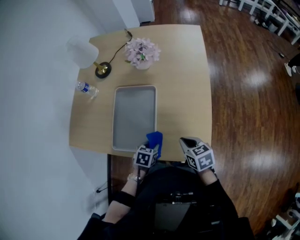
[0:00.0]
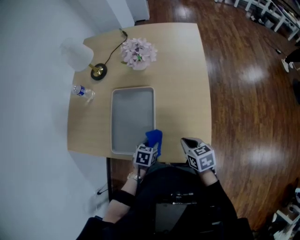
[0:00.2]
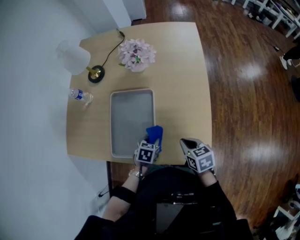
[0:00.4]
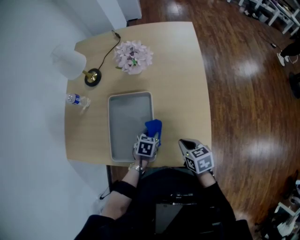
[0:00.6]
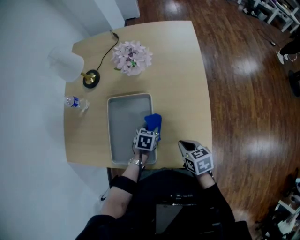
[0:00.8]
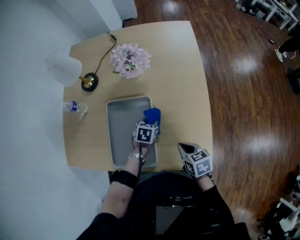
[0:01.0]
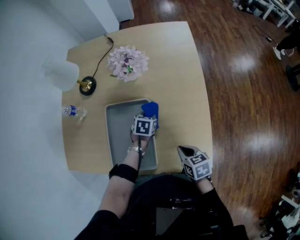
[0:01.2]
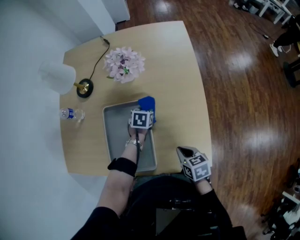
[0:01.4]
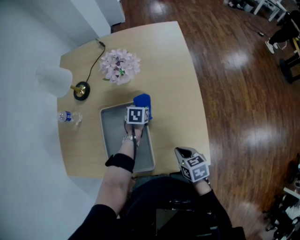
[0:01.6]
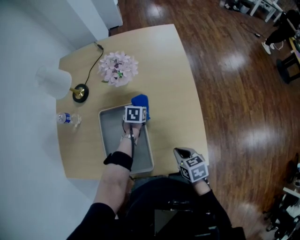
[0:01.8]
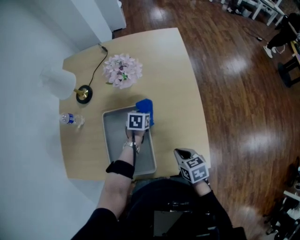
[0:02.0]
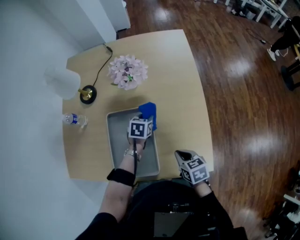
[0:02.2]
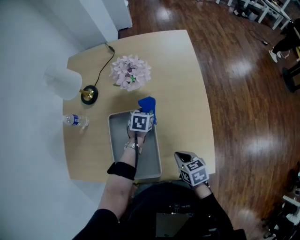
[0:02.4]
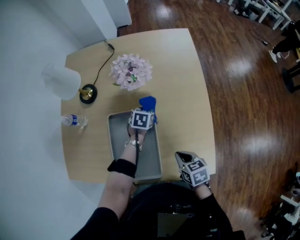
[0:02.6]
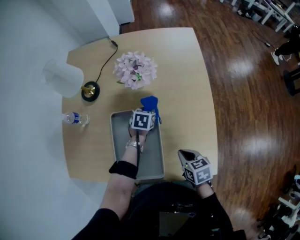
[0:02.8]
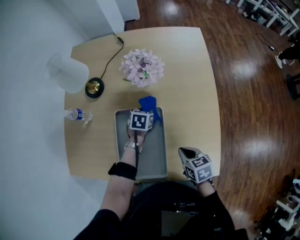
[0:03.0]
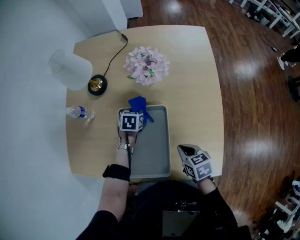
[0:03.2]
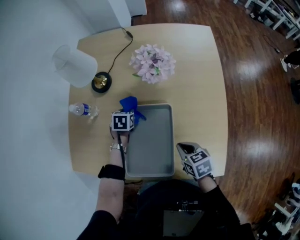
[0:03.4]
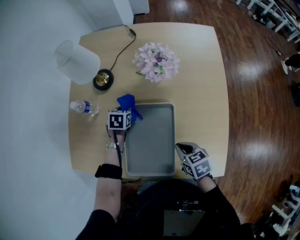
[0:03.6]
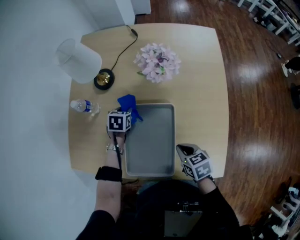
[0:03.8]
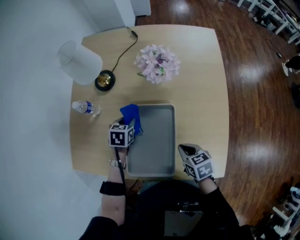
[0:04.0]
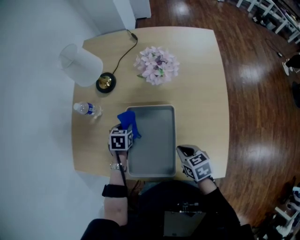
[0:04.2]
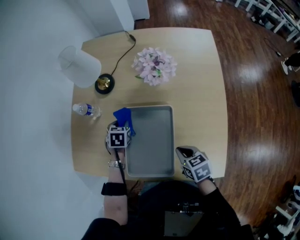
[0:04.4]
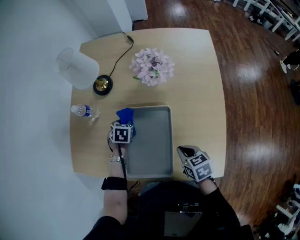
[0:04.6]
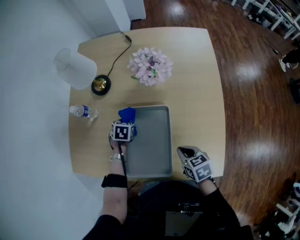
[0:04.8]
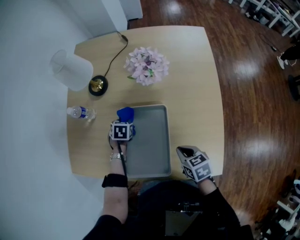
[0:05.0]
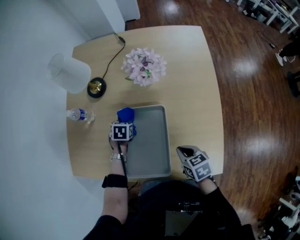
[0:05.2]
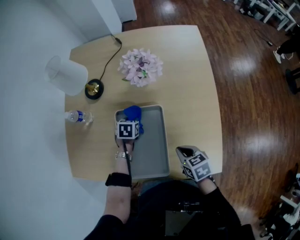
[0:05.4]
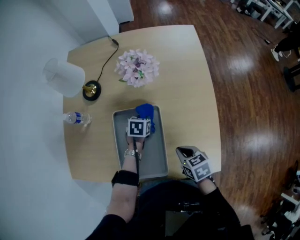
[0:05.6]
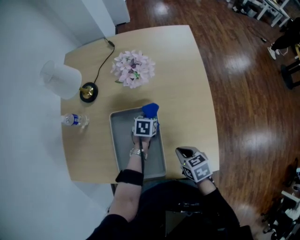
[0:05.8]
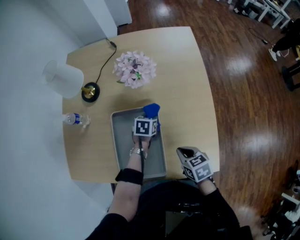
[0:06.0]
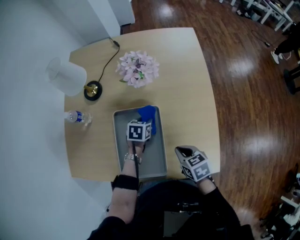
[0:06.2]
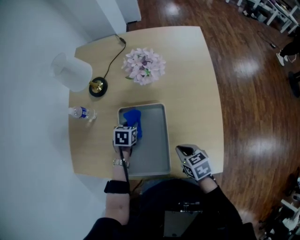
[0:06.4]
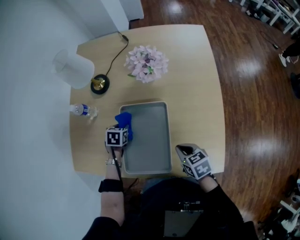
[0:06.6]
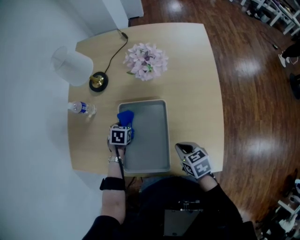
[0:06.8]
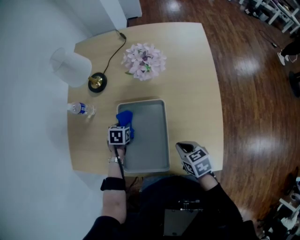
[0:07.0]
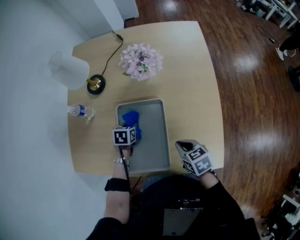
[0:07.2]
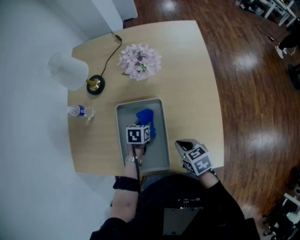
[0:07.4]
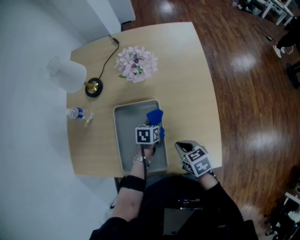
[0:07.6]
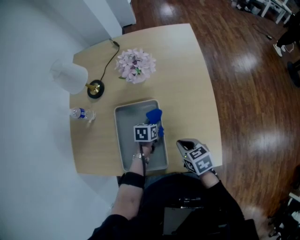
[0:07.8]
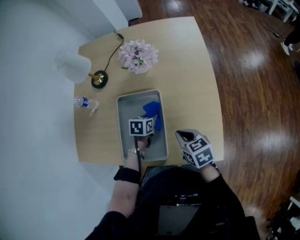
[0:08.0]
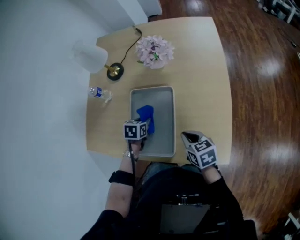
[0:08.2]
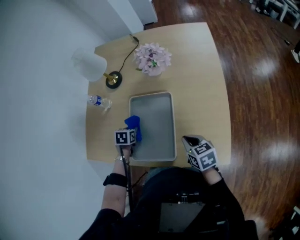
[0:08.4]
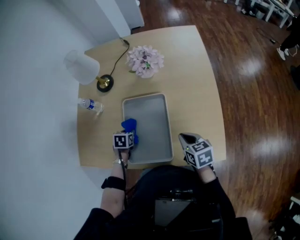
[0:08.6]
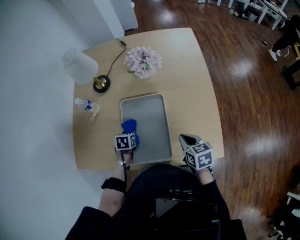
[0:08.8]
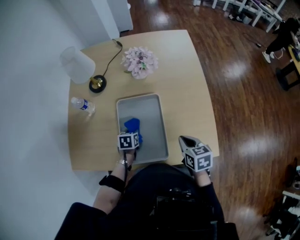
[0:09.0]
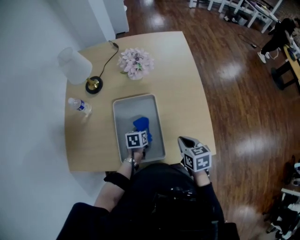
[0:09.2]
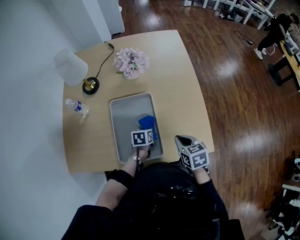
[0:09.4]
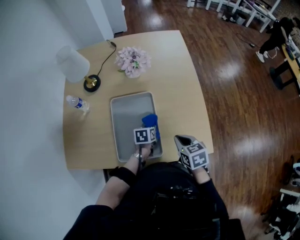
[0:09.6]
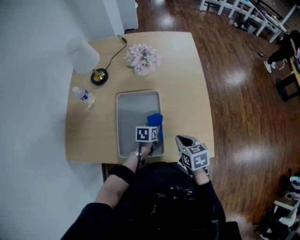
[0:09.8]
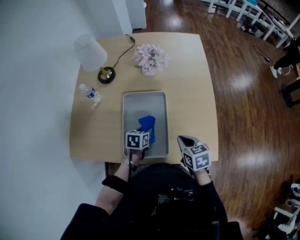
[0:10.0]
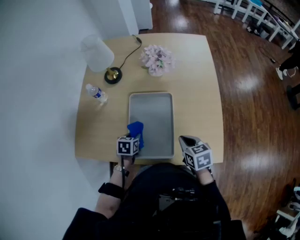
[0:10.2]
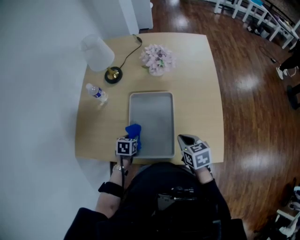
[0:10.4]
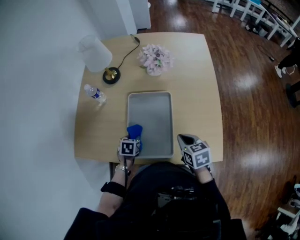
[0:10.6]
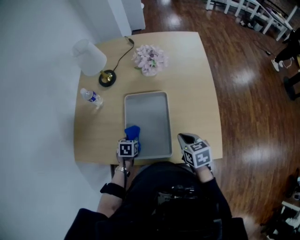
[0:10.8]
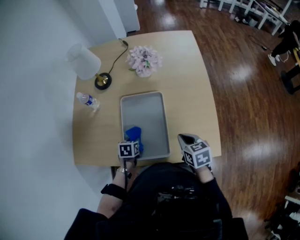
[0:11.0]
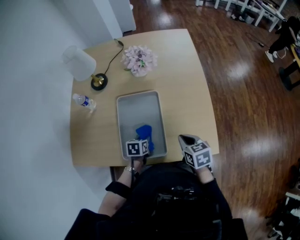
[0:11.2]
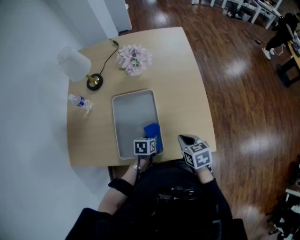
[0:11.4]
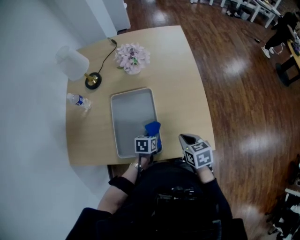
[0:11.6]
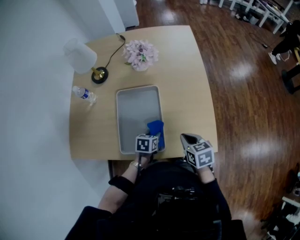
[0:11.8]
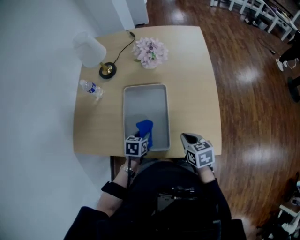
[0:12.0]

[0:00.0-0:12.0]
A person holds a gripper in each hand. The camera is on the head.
0:00.0 to 0:01.6: The left gripper travels forward by roughly 30 cm.
0:01.6 to 0:03.0: The right gripper is displaced forward and to the left by approximately 10 cm; the left gripper heads to the left, covering approximately 5 cm.
0:03.0 to 0:04.4: The right gripper goes roughly 5 cm to the left. Meanwhile the left gripper goes roughly 20 cm to the left.
0:04.4 to 0:06.0: The right gripper ends up some 5 cm from where it was; the left gripper moves approximately 25 cm, and turns by about 20 degrees.
0:06.0 to 0:07.6: The left gripper travels backward by about 5 cm, and reaches approximately 20 cm to the left, then returns.
0:07.6 to 0:09.0: The right gripper moves roughly 5 cm. The left gripper moves to the left, about 15 cm.
0:09.0 to 0:10.4: The left gripper goes approximately 5 cm backward, and moves roughly 15 cm to the right and comes back.
0:10.4 to 0:12.0: The left gripper travels to the right by roughly 10 cm.

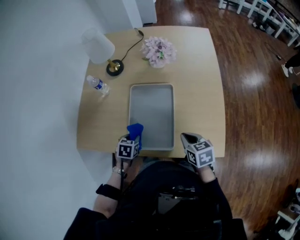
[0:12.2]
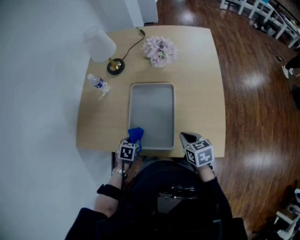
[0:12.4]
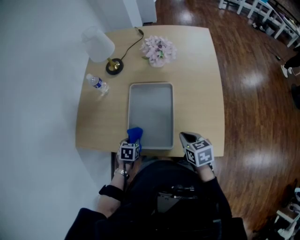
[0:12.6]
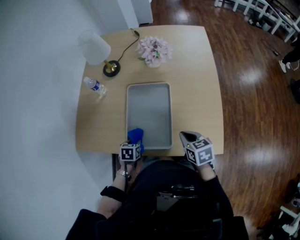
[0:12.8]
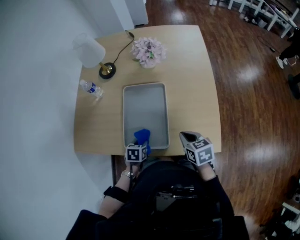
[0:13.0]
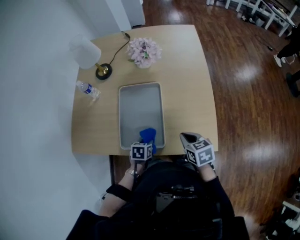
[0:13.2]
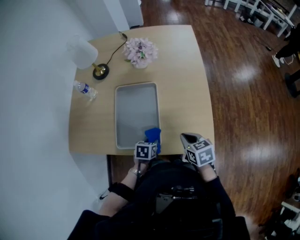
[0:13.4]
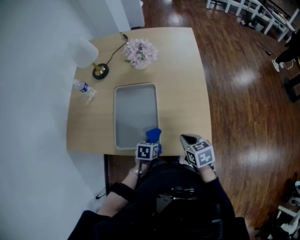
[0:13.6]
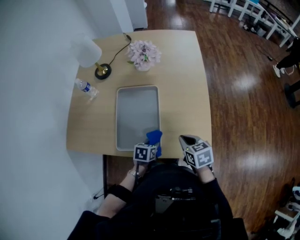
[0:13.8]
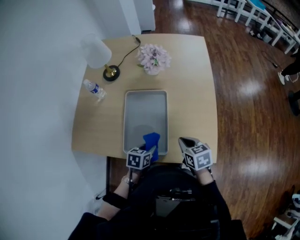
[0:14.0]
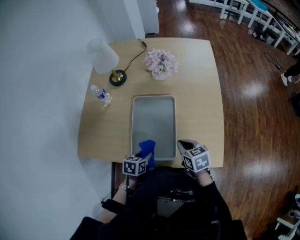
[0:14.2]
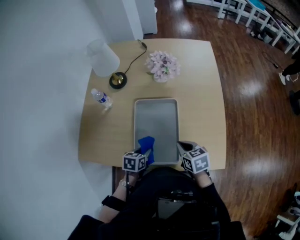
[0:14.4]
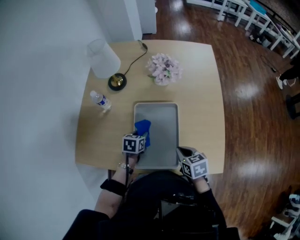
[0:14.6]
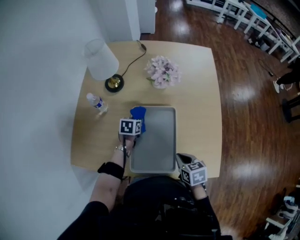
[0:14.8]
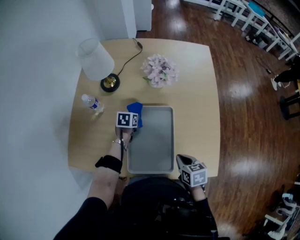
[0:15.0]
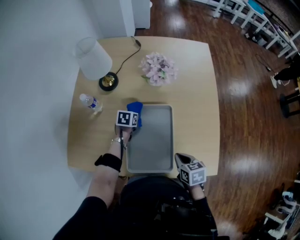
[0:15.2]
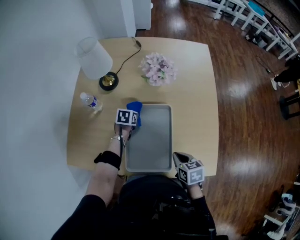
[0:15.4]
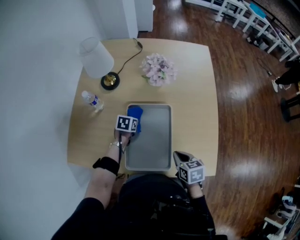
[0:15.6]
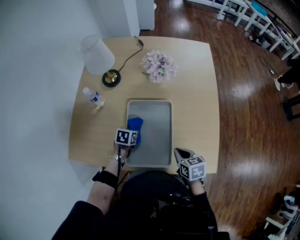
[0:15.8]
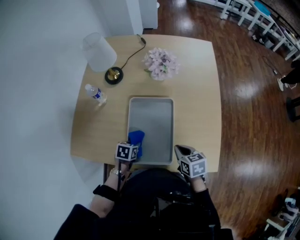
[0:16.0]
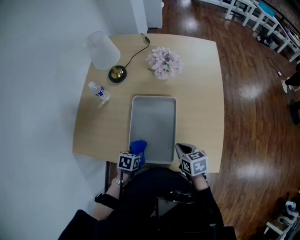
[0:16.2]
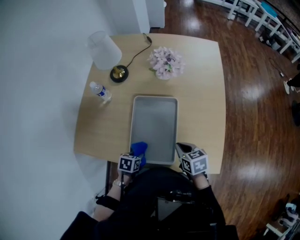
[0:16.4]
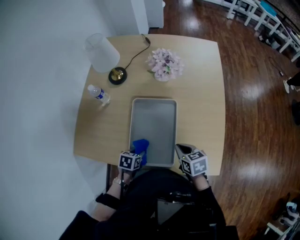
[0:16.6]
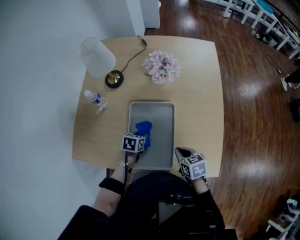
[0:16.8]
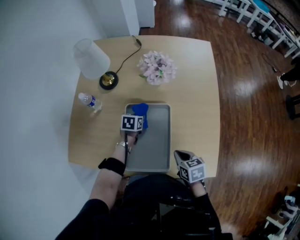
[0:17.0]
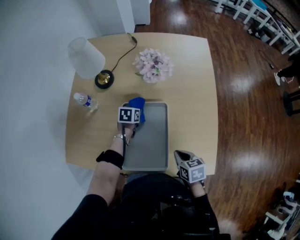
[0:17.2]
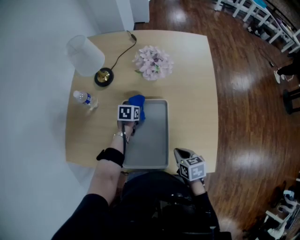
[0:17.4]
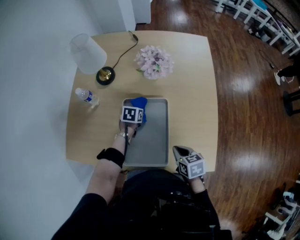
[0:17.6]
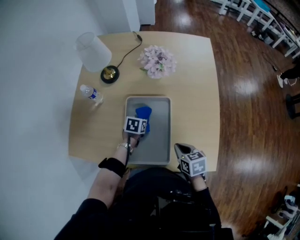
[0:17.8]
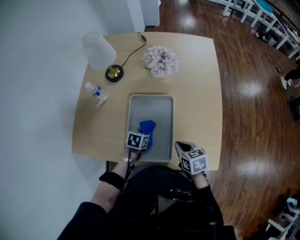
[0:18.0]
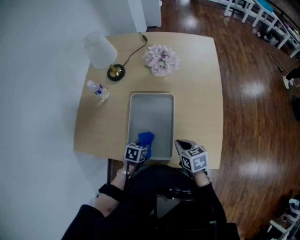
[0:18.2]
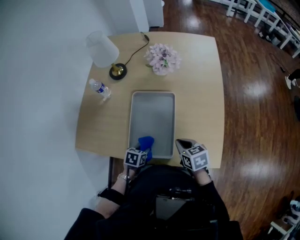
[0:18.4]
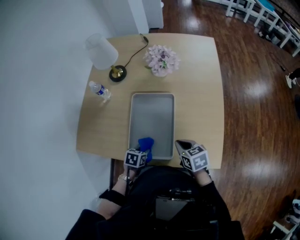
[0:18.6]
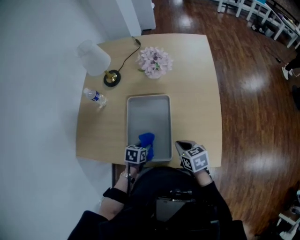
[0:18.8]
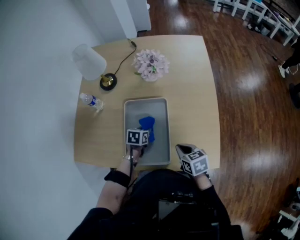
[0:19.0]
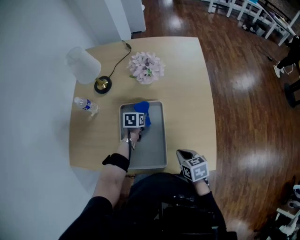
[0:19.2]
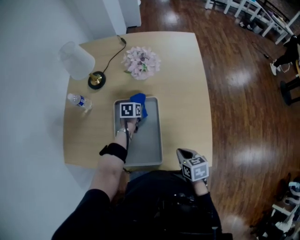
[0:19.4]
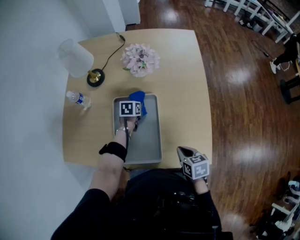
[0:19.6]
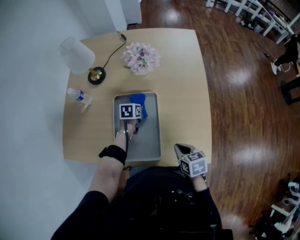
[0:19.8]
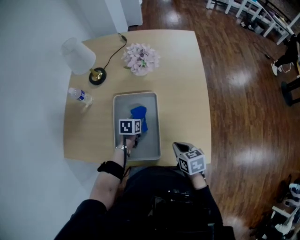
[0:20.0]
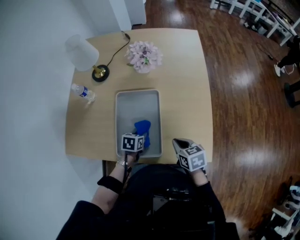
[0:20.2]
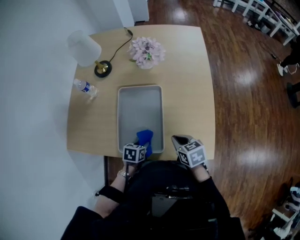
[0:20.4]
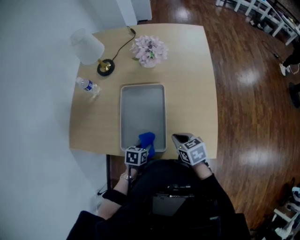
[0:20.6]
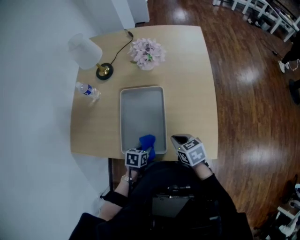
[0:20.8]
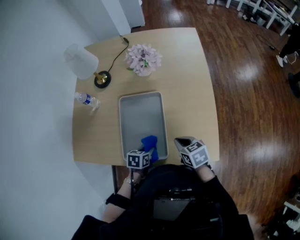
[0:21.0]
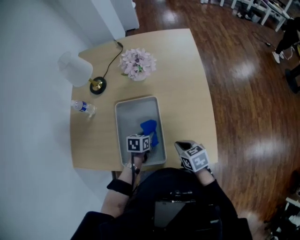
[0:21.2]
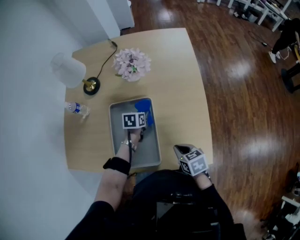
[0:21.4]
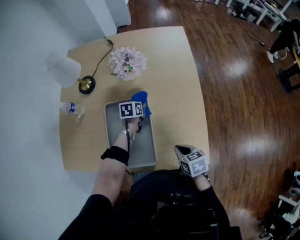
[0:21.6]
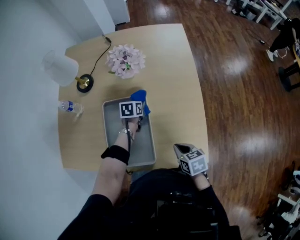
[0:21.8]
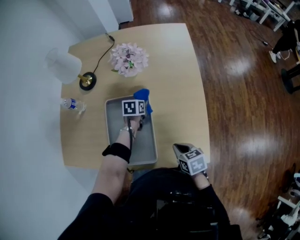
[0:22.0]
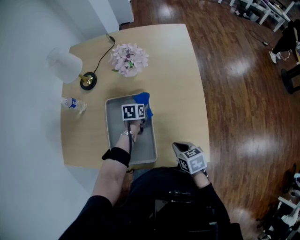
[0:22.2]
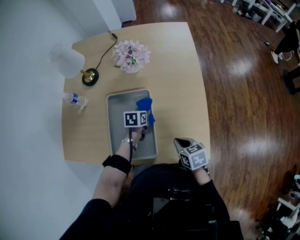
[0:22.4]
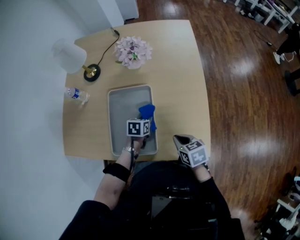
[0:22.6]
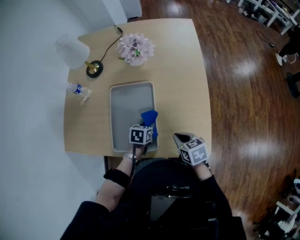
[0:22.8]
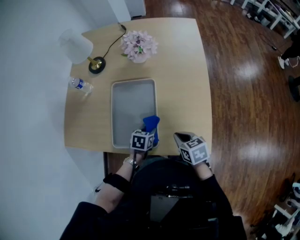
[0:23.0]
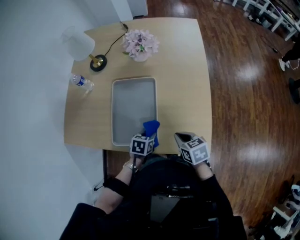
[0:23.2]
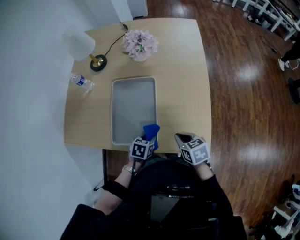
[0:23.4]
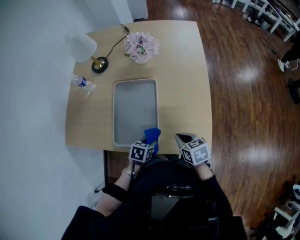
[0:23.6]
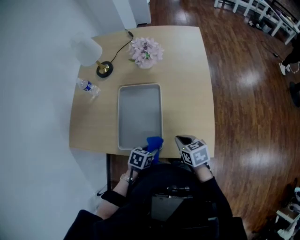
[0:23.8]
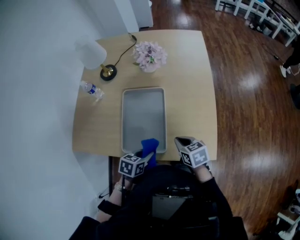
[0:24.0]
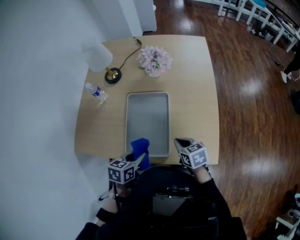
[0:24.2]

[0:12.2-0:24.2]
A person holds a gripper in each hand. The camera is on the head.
0:12.2 to 0:13.8: The left gripper is displaced to the right by about 20 cm. Meanwhile the right gripper moves to the right, roughly 5 cm.
0:13.8 to 0:15.2: The right gripper travels to the left and forward by roughly 10 cm. The left gripper heads forward and to the left, covering approximately 35 cm.
0:15.2 to 0:16.6: The left gripper shifts roughly 25 cm backward.
0:16.6 to 0:18.2: The left gripper reaches about 25 cm forward, then returns.
0:18.2 to 0:19.8: The right gripper goes approximately 5 cm to the right. The left gripper shifts about 25 cm forward.
0:19.8 to 0:21.2: The left gripper goes about 15 cm backward.
0:21.2 to 0:22.6: The left gripper reaches about 15 cm forward, then returns.
0:22.6 to 0:24.2: The left gripper moves backward, upward and to the left, some 25 cm, while the right gripper shifts roughly 5 cm to the left.
